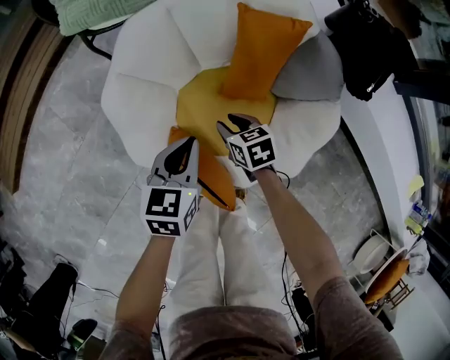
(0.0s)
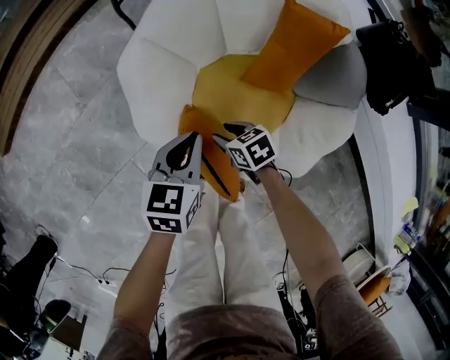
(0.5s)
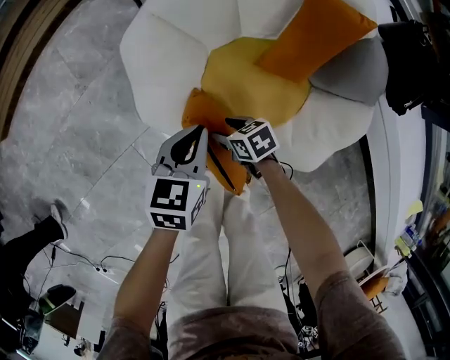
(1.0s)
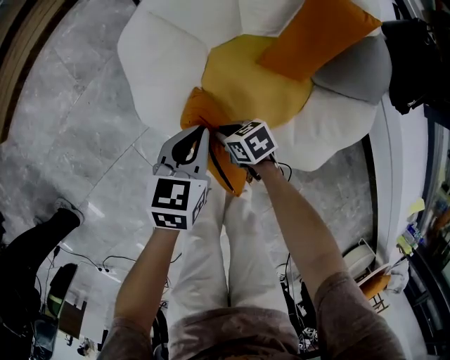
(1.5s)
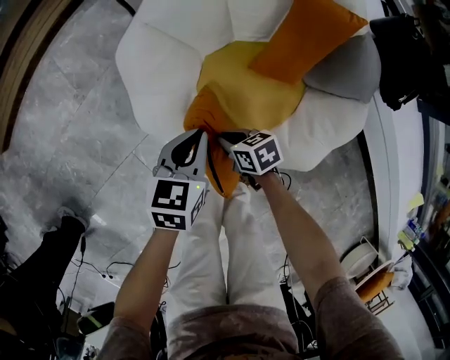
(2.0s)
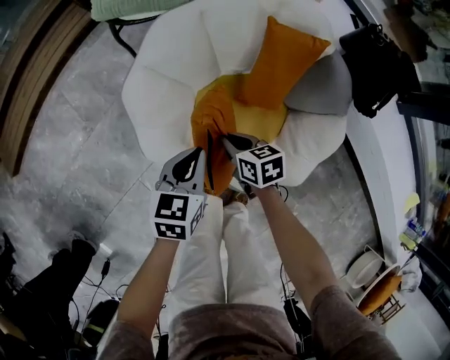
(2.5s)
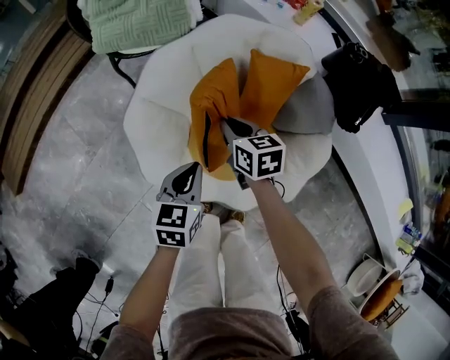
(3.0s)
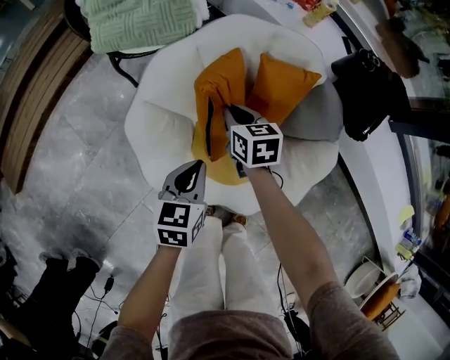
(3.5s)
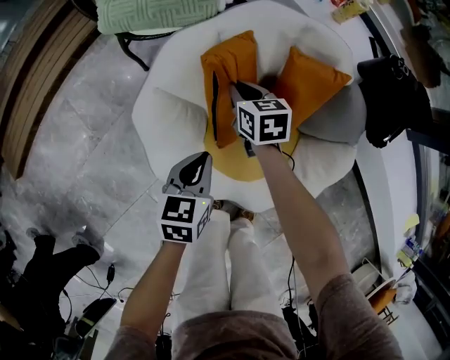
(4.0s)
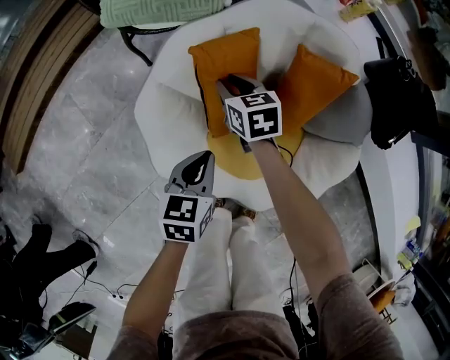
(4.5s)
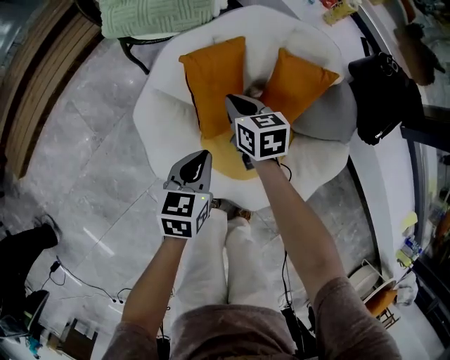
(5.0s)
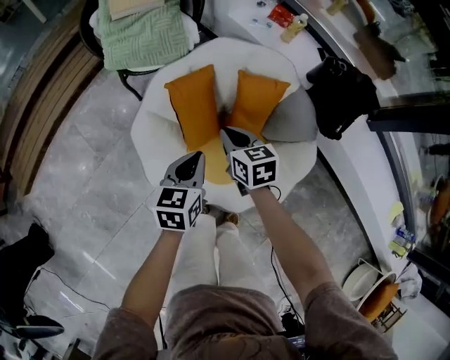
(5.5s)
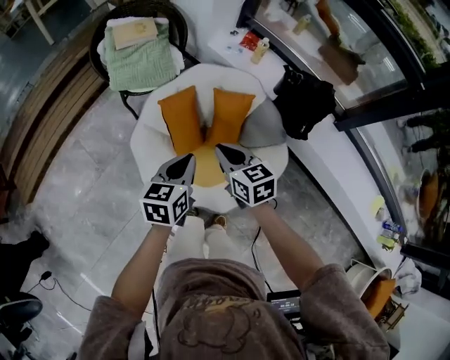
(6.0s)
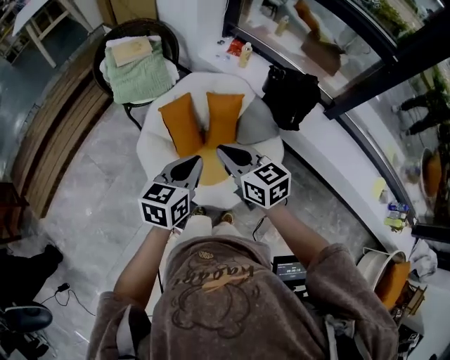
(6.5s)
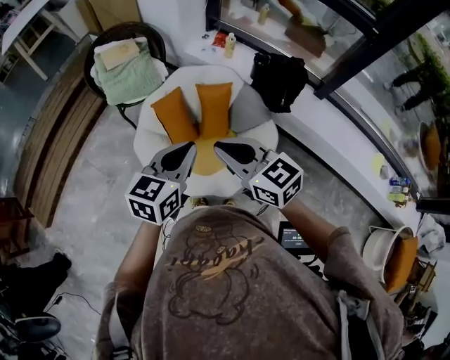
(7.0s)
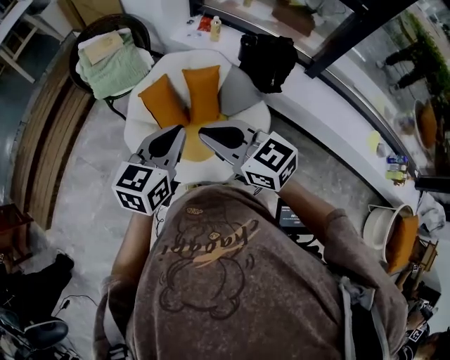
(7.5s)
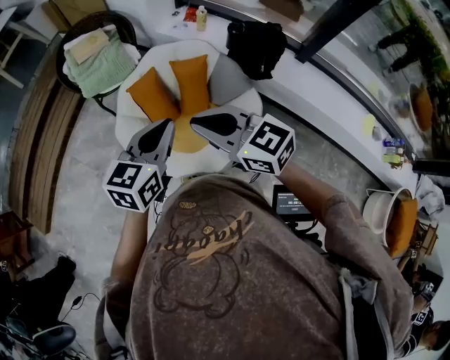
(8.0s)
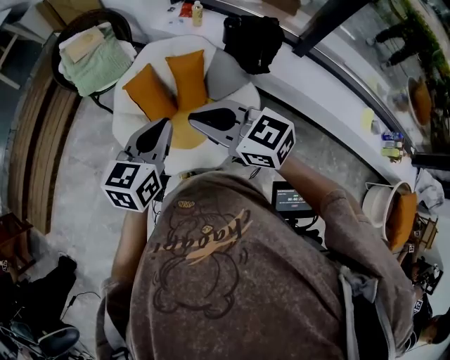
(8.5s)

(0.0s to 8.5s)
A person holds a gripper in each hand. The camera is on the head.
0.0s - 2.0s: The left gripper moves roughly 10 cm. Meanwhile the right gripper ends up some 15 cm from where it was, turns by roughly 20 degrees, and closes.
2.0s - 4.0s: The left gripper moves about 10 cm. The right gripper shifts by roughly 35 cm, and rotates some 30 degrees.
4.0s - 6.5s: The right gripper moves upward and backward, roughly 50 cm, and changes its angle by about 20 degrees. Meanwhile the left gripper moves upward, roughly 40 cm, and rotates approximately 20 degrees.
6.5s - 8.5s: The right gripper moves upward and backward, some 10 cm, while the left gripper shifts about 5 cm upward.

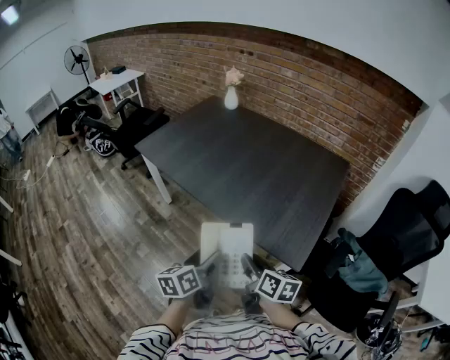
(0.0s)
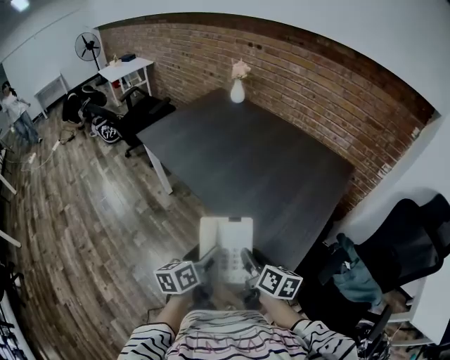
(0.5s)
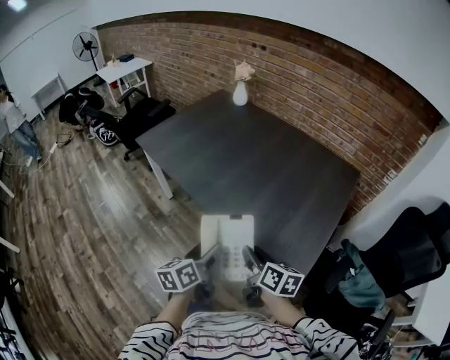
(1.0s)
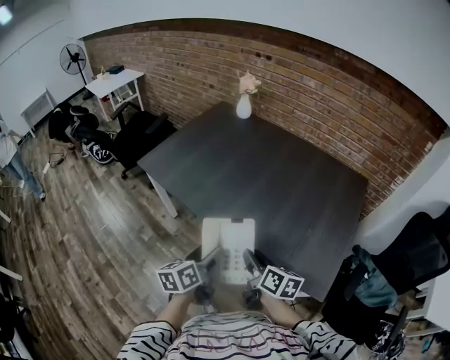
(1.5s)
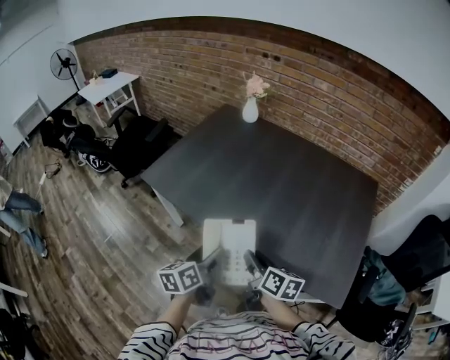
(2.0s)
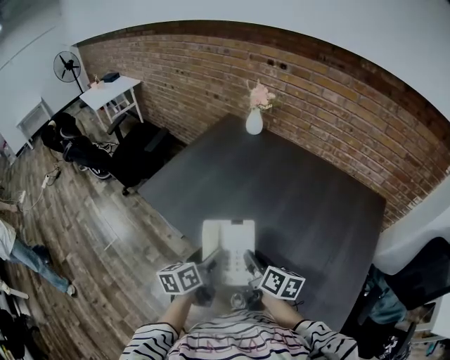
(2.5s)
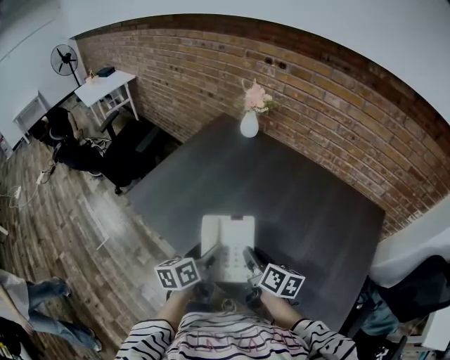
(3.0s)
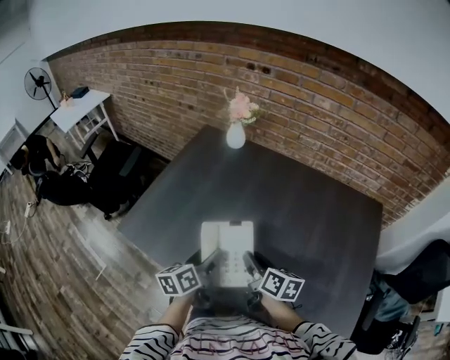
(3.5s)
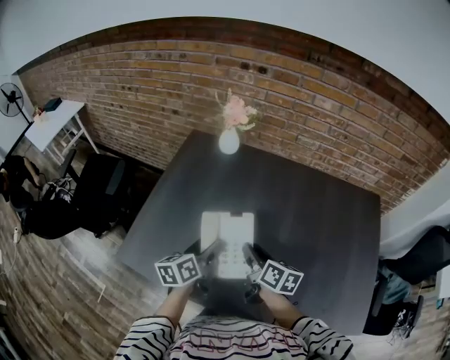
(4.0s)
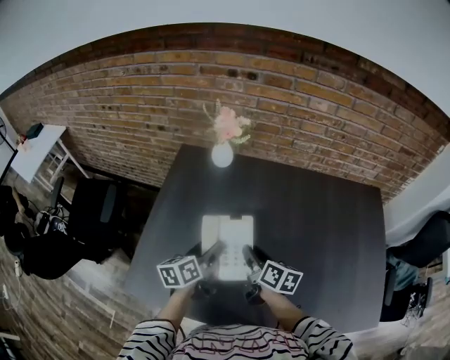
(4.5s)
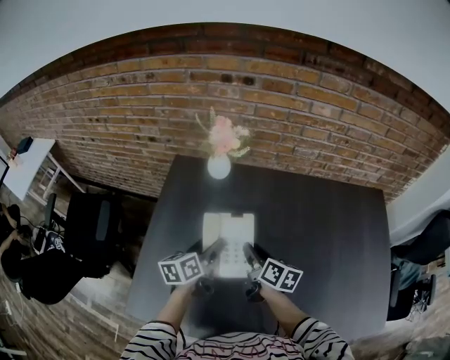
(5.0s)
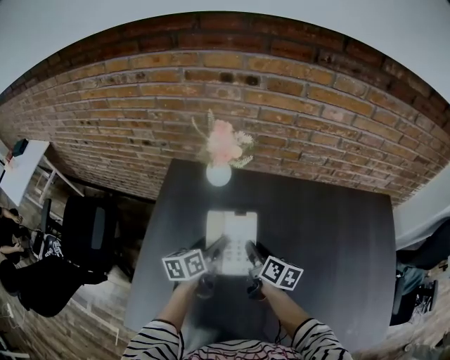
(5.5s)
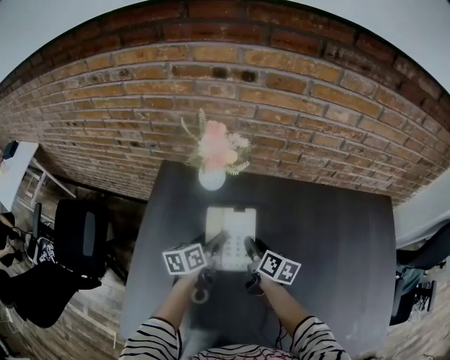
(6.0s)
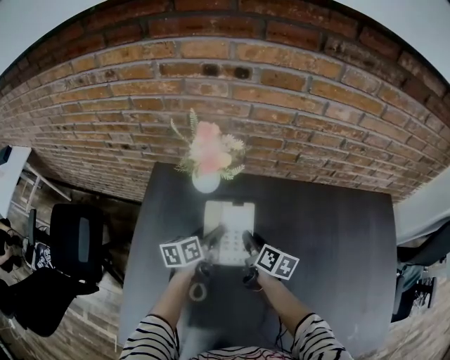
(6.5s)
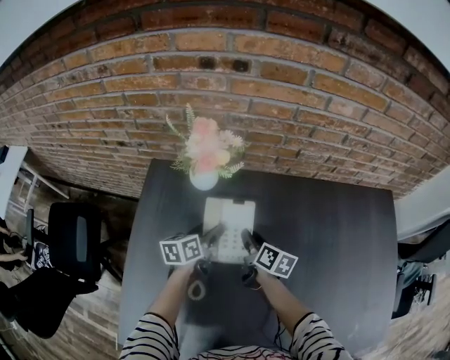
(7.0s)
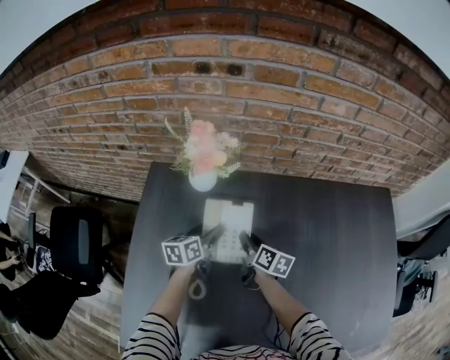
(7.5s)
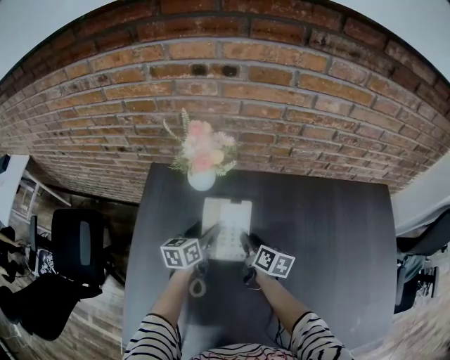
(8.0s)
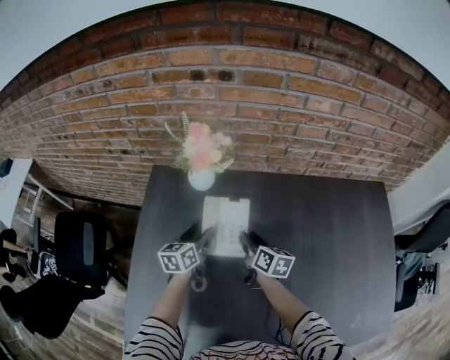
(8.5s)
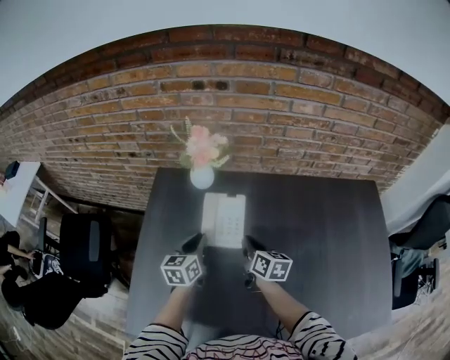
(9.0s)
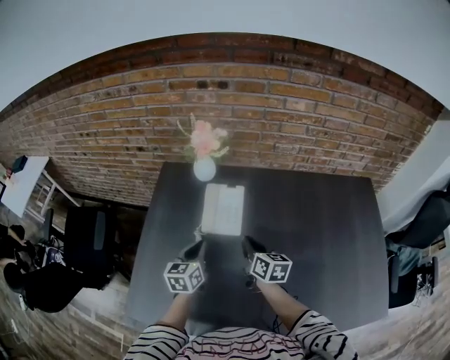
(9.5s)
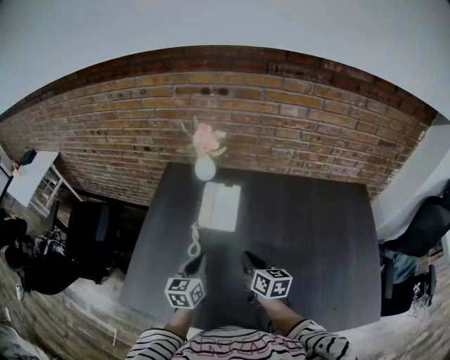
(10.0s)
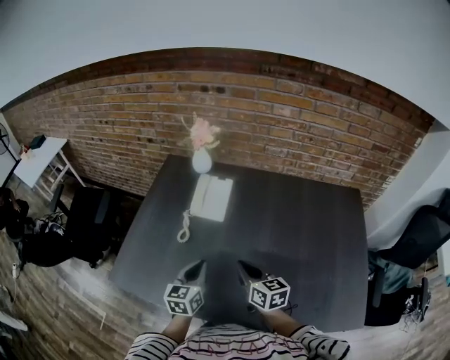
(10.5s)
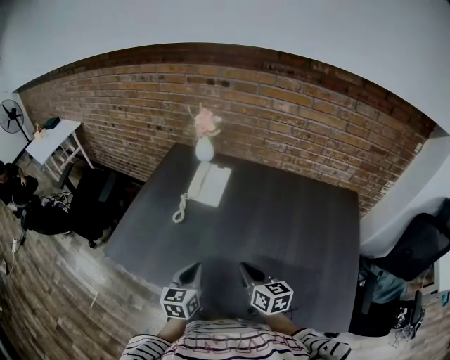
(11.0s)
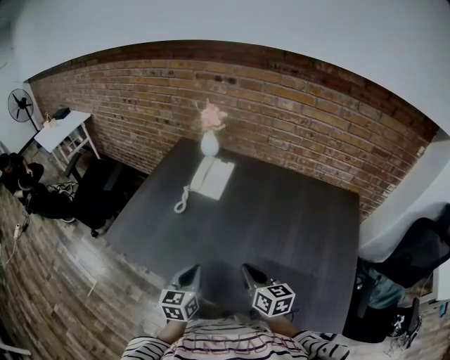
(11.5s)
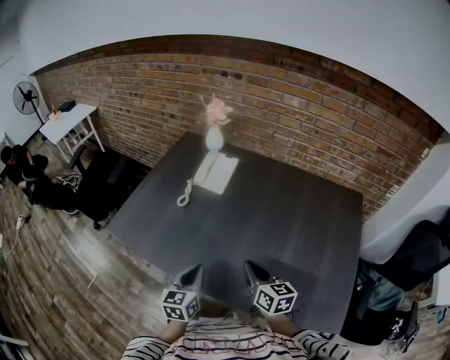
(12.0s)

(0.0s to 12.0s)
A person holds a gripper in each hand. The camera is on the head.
0.0s - 2.0s: Both grippers move forward and to the left, roughly 35 cm.
2.0s - 4.0s: Both grippers travel together forward, approximately 40 cm.
4.0s - 6.0s: Both grippers move forward, approximately 30 cm.
8.0s - 10.0s: The left gripper moves backward, some 30 cm, and closes up, while the right gripper is displaced backward and upward by some 30 cm, changes its angle by some 20 degrees, and closes.
10.0s - 12.0s: The left gripper goes some 30 cm backward; the right gripper travels backward and to the right by roughly 25 cm.

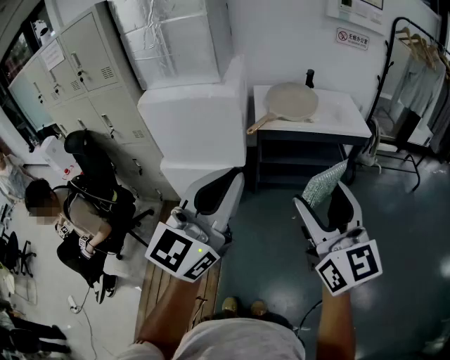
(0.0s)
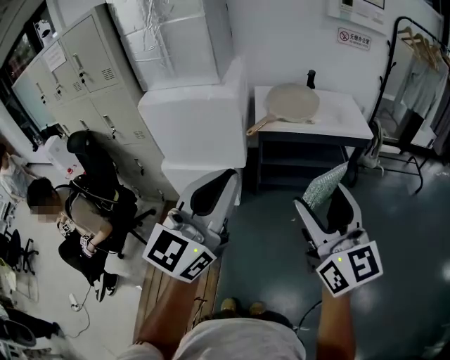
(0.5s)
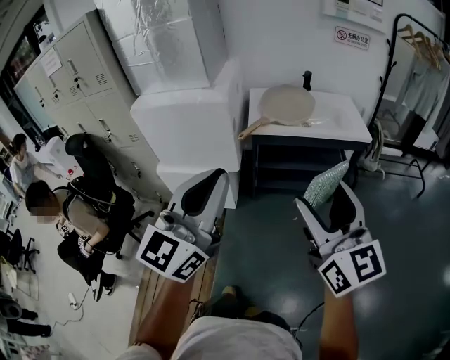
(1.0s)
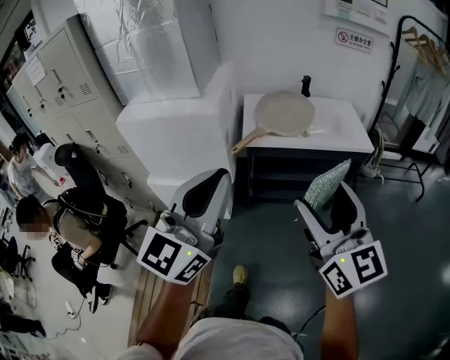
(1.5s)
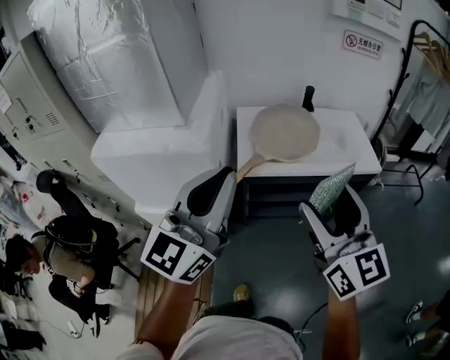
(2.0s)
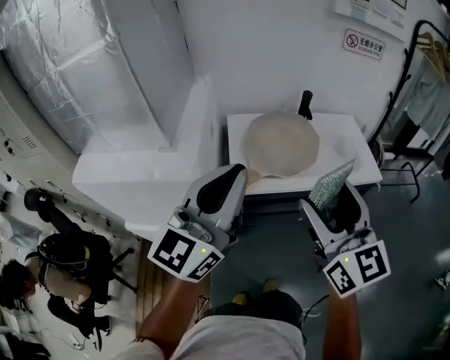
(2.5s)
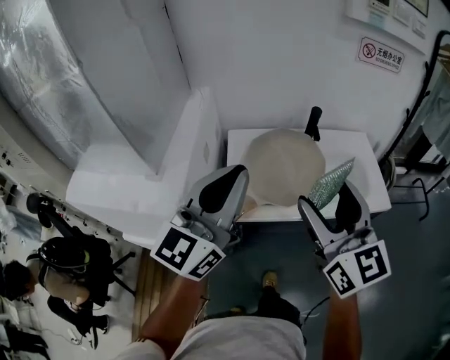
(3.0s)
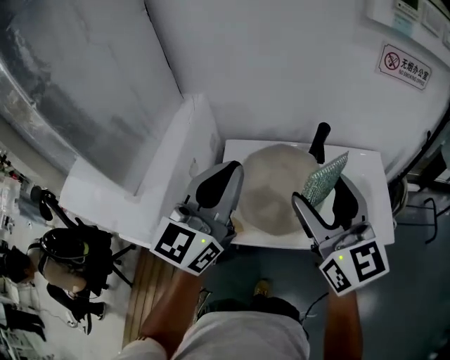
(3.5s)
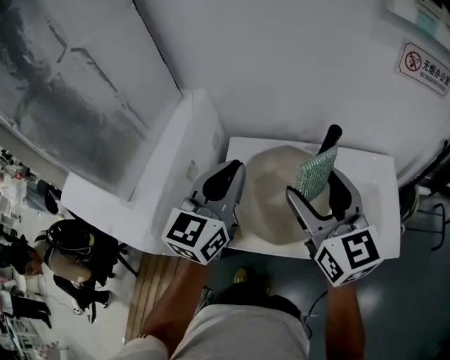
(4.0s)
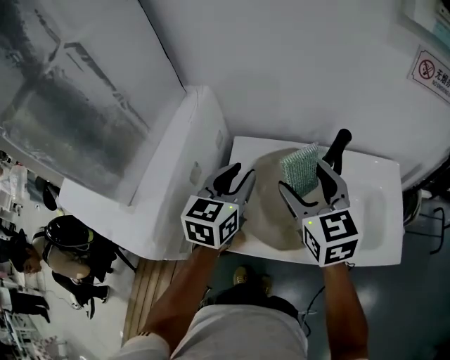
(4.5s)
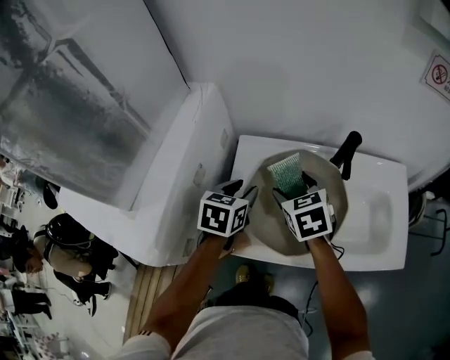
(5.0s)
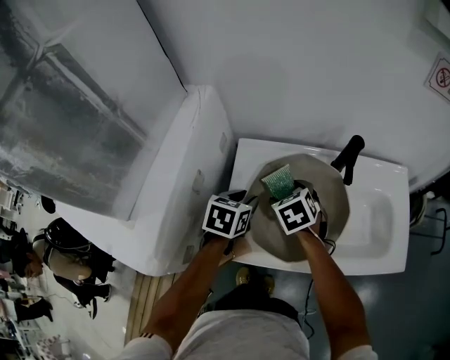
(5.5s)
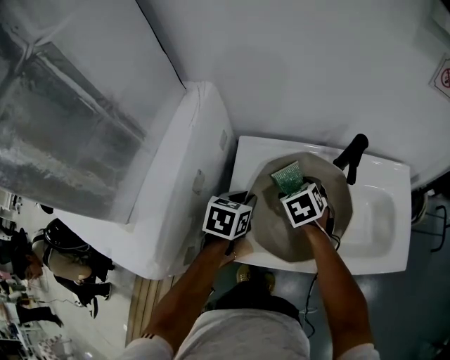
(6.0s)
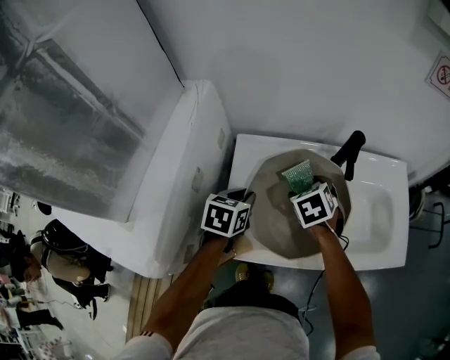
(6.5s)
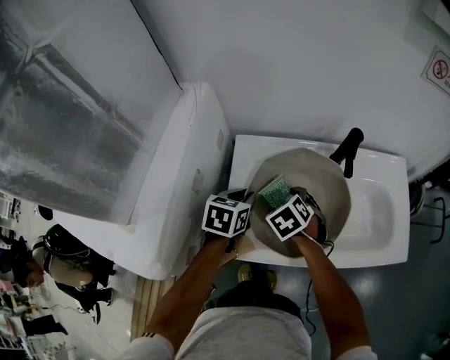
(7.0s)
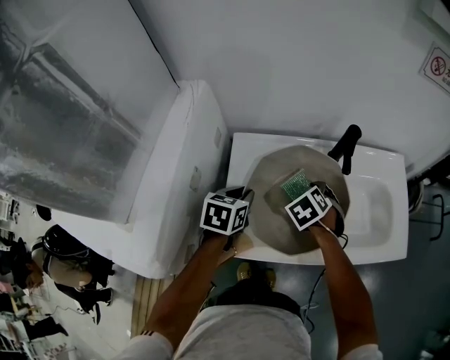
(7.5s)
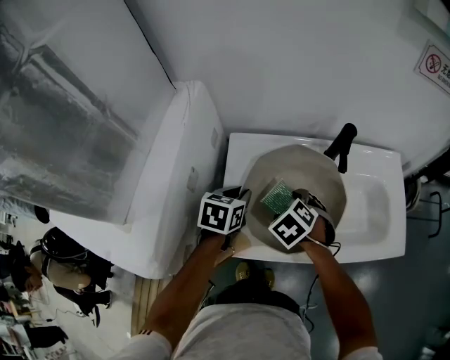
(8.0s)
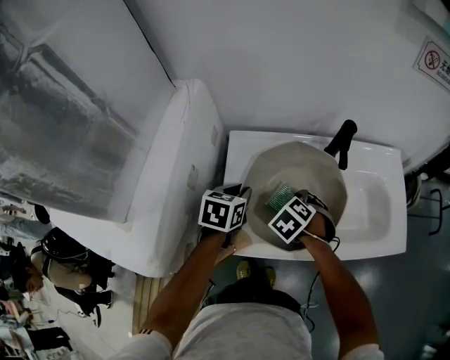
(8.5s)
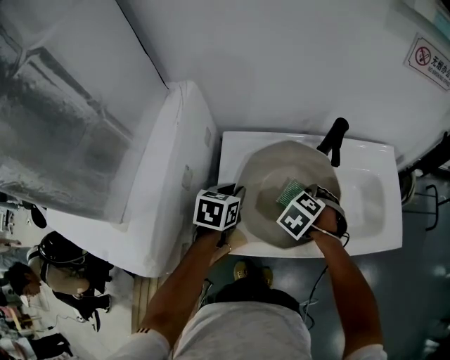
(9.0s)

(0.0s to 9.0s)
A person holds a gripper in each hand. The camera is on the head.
0.0s - 2.0s: The two grippers go some 30 cm forward.
2.0s - 4.5s: Both grippers are carried forward, about 40 cm. The left gripper travels downward by some 20 cm, tips its fingers downward by some 30 degrees, and opens its fingers, while the right gripper swivels roughly 30 degrees.
4.5s - 7.0s: Both grippers move downward, roughly 20 cm. The right gripper points its fingers approximately 40 degrees further downward. The left gripper rotates approximately 30 degrees.
7.0s - 9.0s: The right gripper moves left and right over approximately 10 cm, changing direction 2 times, and changes its angle by some 20 degrees.
